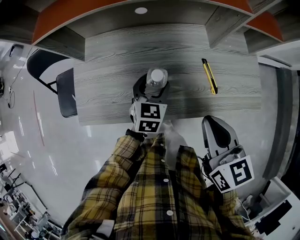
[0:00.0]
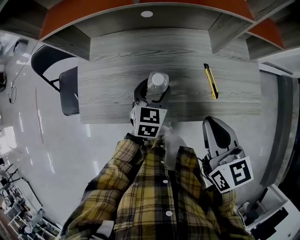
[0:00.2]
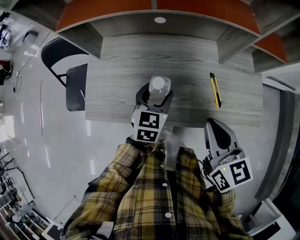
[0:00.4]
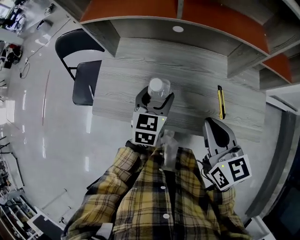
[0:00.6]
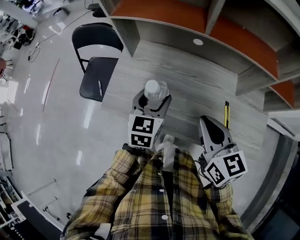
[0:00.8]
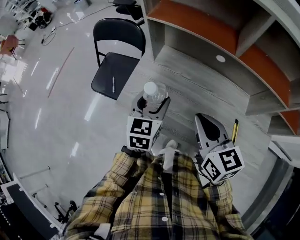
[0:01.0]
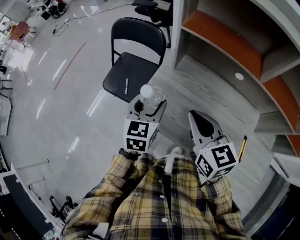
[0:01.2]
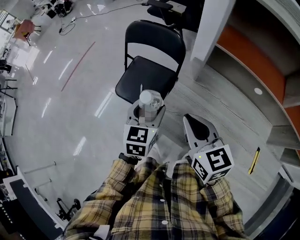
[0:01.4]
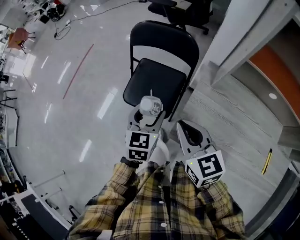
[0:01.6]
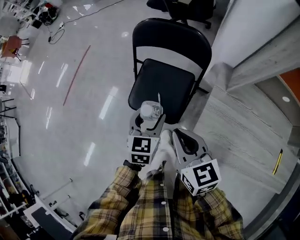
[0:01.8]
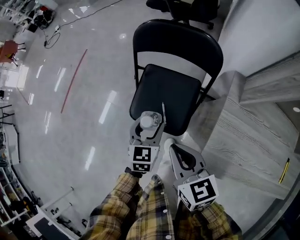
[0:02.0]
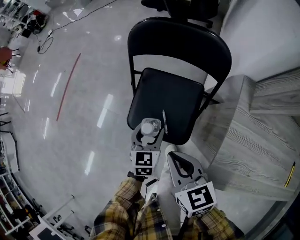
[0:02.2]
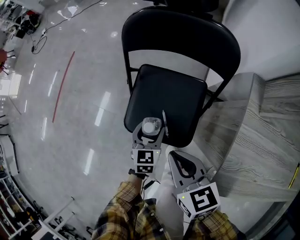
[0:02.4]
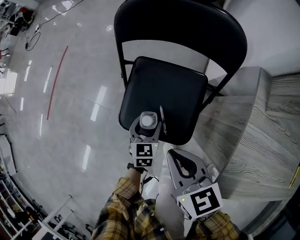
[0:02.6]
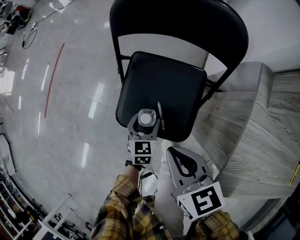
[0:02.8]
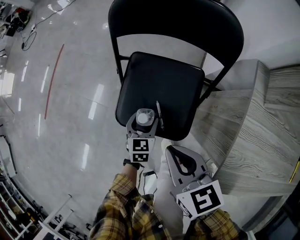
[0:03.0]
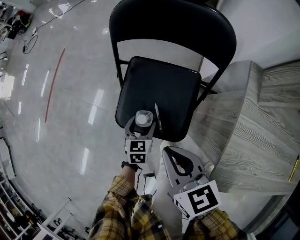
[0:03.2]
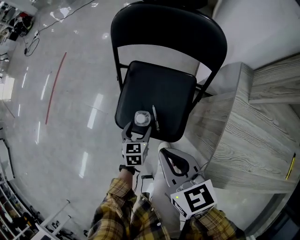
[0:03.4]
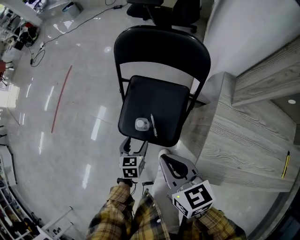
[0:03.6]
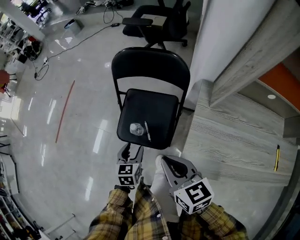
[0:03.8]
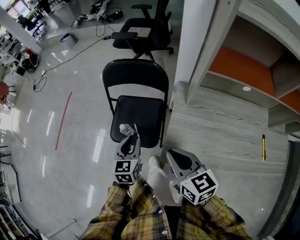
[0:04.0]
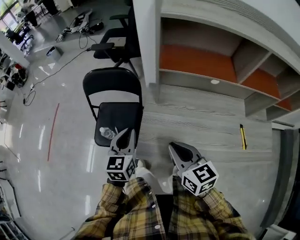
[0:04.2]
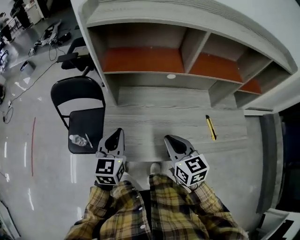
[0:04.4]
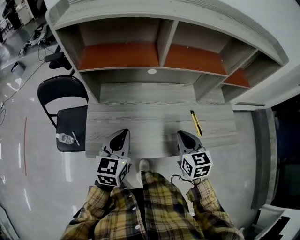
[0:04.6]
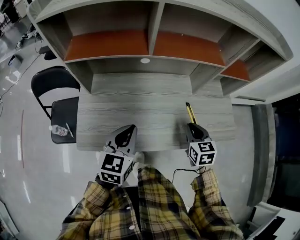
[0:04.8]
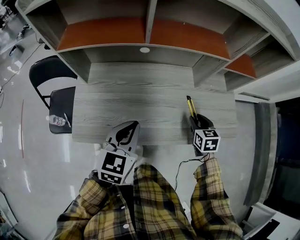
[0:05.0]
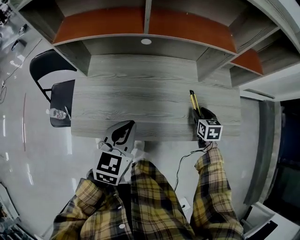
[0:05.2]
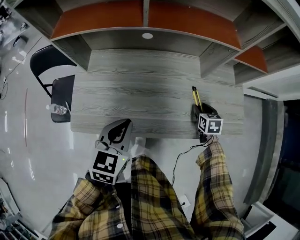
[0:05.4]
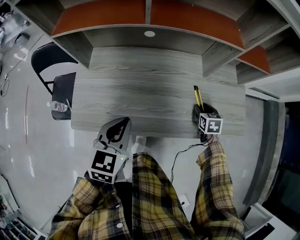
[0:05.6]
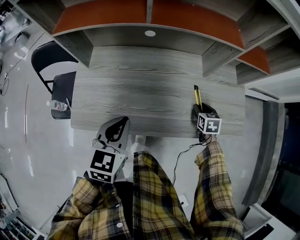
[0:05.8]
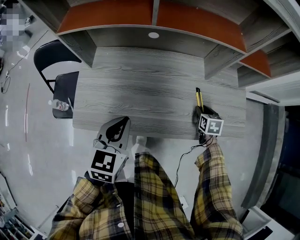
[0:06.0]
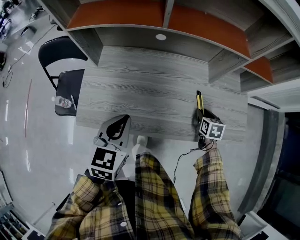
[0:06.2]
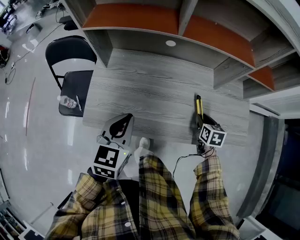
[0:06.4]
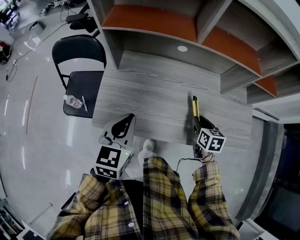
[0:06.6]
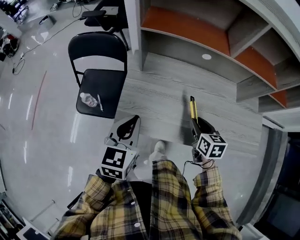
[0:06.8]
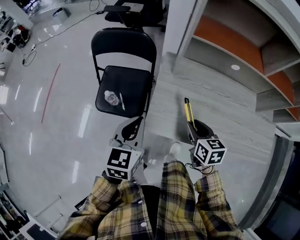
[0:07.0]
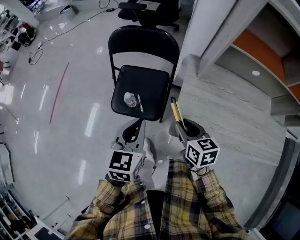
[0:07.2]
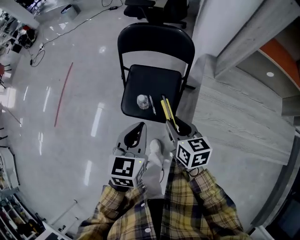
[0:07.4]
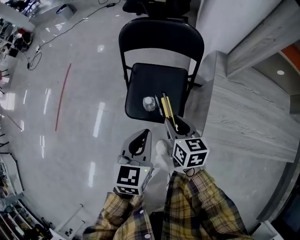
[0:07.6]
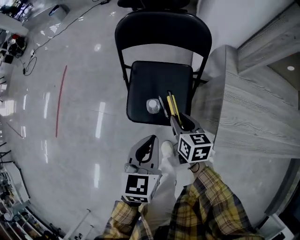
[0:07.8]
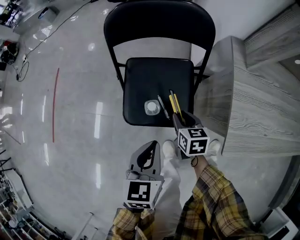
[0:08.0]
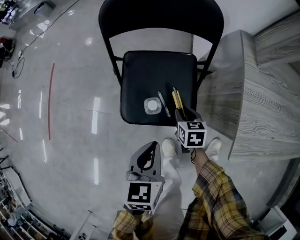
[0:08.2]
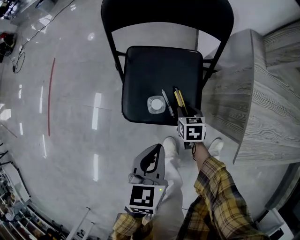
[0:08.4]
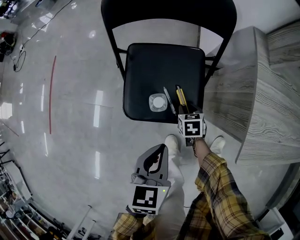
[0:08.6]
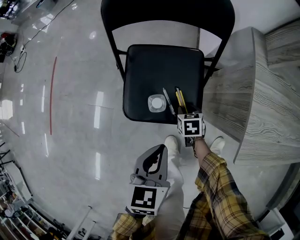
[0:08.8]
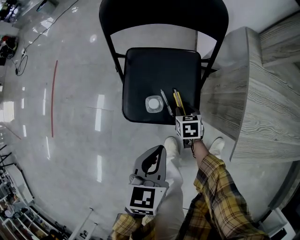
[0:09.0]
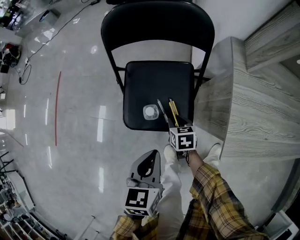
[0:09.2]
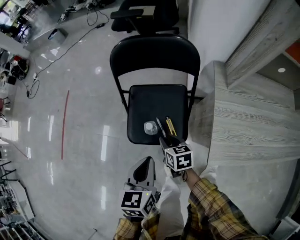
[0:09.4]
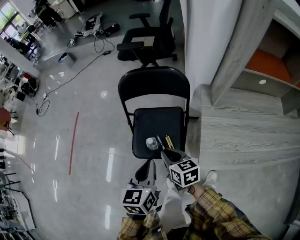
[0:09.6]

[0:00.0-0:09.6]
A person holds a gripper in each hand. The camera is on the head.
0:00.0 to 0:01.6: The pair of grippers is taken some 50 cm. The right gripper turns by roughly 40 degrees. Meanwhile the left gripper changes its angle by some 40 degrees.
0:01.6 to 0:03.2: The right gripper heads downward, to the left and forward, covering about 25 cm, while the left gripper shifts approximately 35 cm downward.
0:03.2 to 0:04.8: The pair of grippers is taken roughly 70 cm. The left gripper turns by roughly 40 degrees, and closes its fingers; the right gripper turns by about 40 degrees.
0:04.8 to 0:06.4: The right gripper travels downward by approximately 10 cm, and opens. The left gripper moves approximately 5 cm.
0:06.4 to 0:08.0: The pair of grippers is taken about 60 cm.
0:08.0 to 0:09.6: The grippers both shift upward by approximately 15 cm.

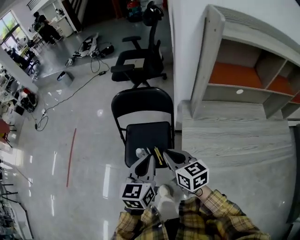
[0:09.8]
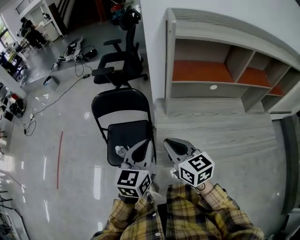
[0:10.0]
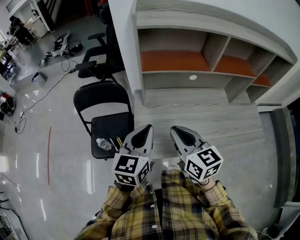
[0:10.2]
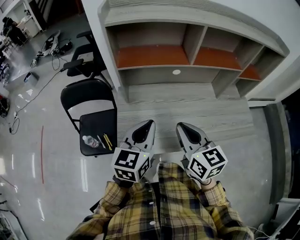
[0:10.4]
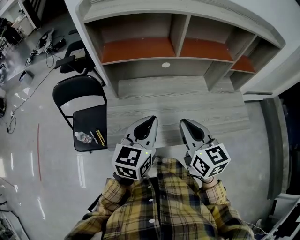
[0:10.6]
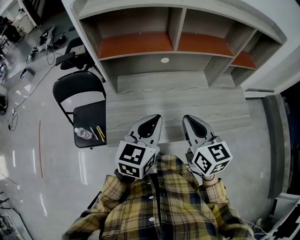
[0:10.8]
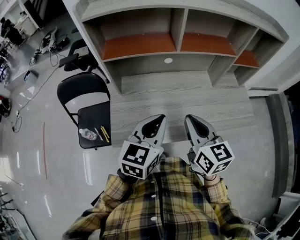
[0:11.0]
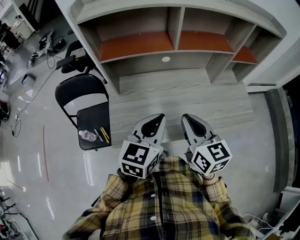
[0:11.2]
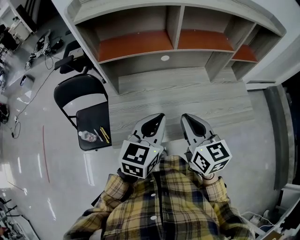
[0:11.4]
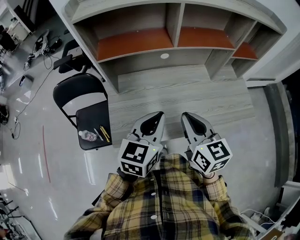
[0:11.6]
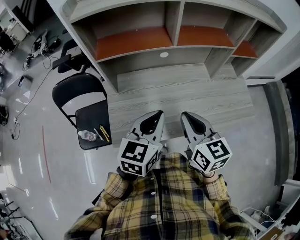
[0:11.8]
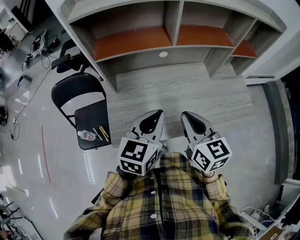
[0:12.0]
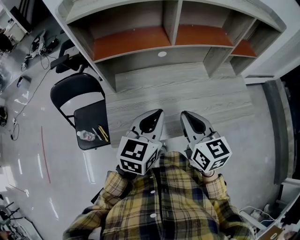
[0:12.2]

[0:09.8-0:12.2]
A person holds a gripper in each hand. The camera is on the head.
0:09.8 to 0:11.0: The pair of grippers is taken about 40 cm. The right gripper turns by approximately 30 degrees. Meanwhile the left gripper swivels roughly 30 degrees.
0:11.0 to 0:12.2: The grippers move only a little.

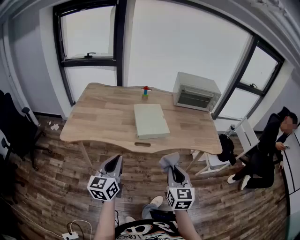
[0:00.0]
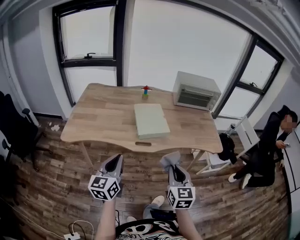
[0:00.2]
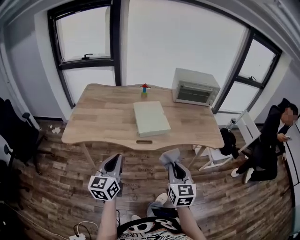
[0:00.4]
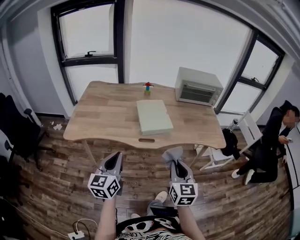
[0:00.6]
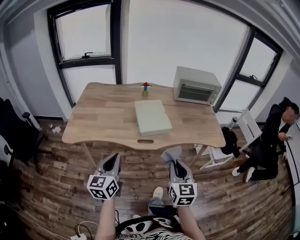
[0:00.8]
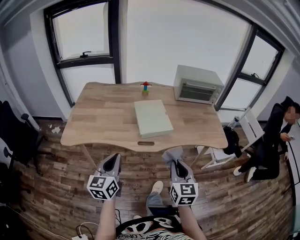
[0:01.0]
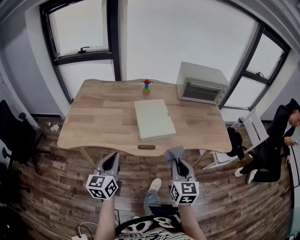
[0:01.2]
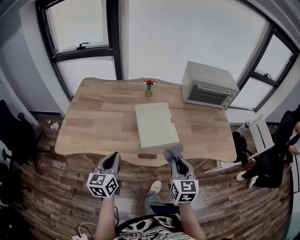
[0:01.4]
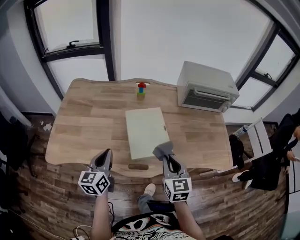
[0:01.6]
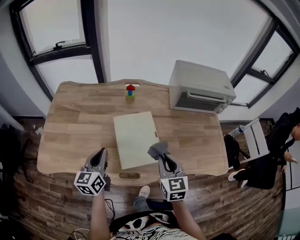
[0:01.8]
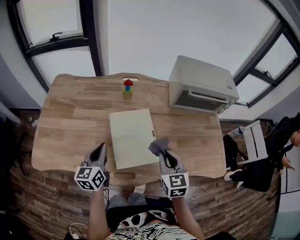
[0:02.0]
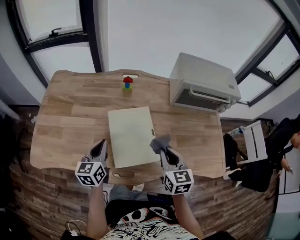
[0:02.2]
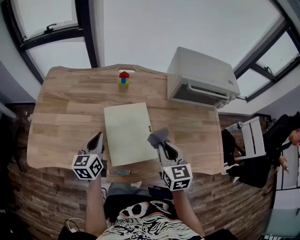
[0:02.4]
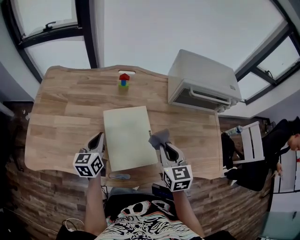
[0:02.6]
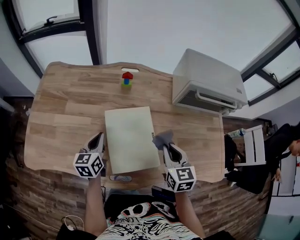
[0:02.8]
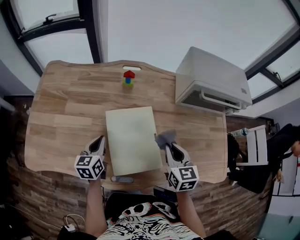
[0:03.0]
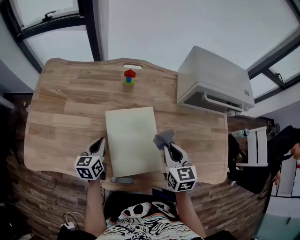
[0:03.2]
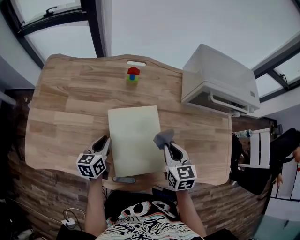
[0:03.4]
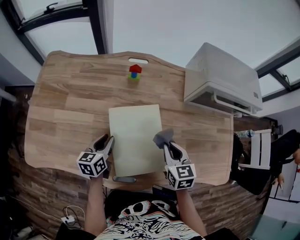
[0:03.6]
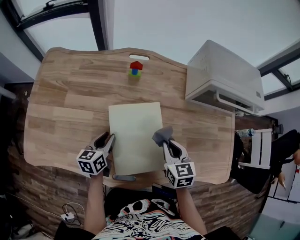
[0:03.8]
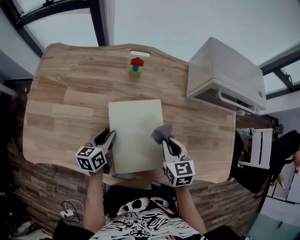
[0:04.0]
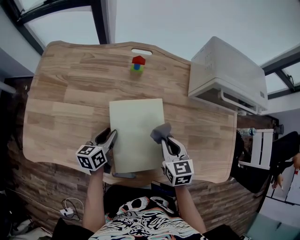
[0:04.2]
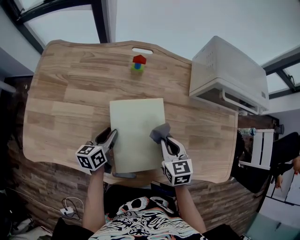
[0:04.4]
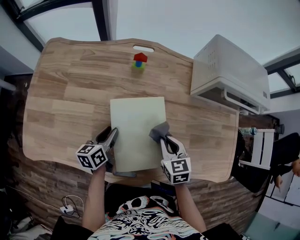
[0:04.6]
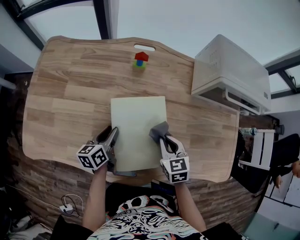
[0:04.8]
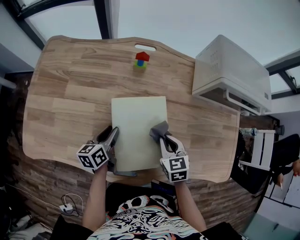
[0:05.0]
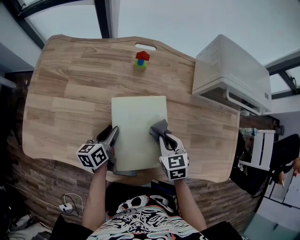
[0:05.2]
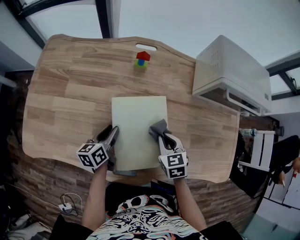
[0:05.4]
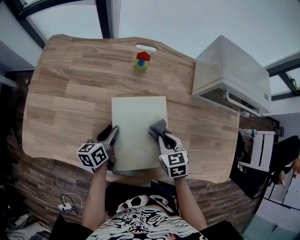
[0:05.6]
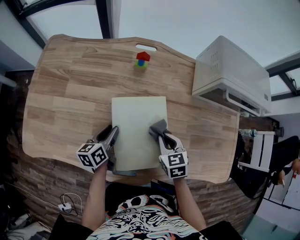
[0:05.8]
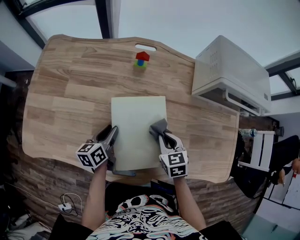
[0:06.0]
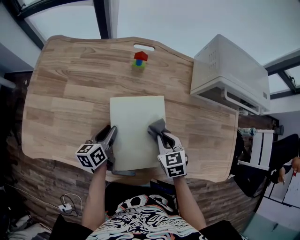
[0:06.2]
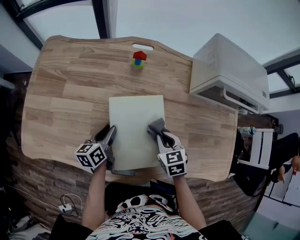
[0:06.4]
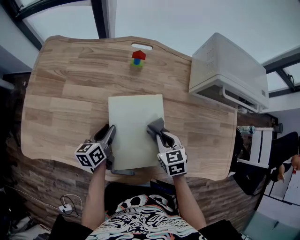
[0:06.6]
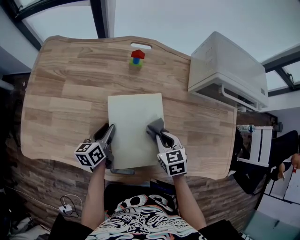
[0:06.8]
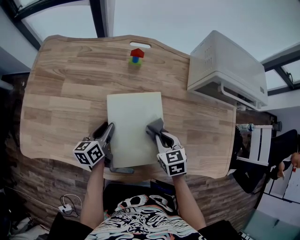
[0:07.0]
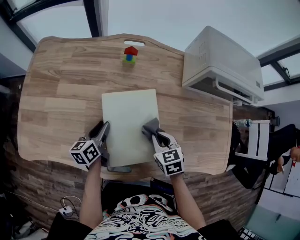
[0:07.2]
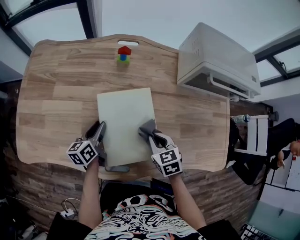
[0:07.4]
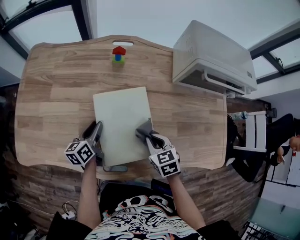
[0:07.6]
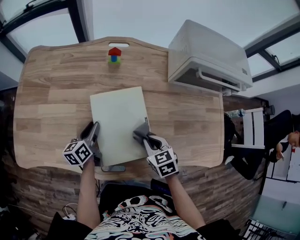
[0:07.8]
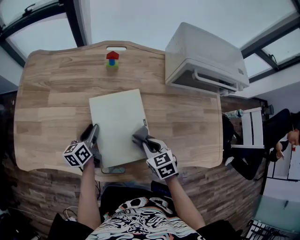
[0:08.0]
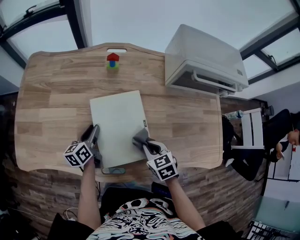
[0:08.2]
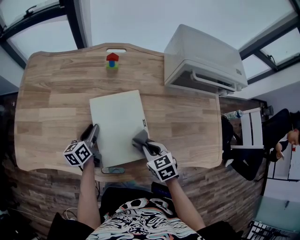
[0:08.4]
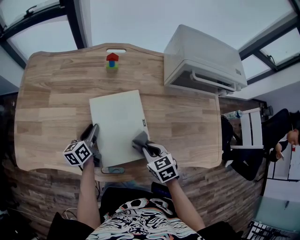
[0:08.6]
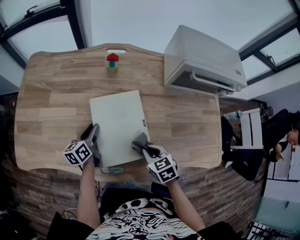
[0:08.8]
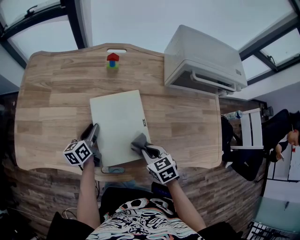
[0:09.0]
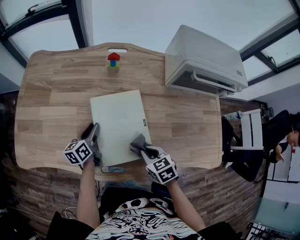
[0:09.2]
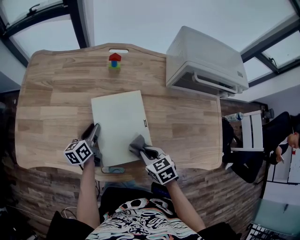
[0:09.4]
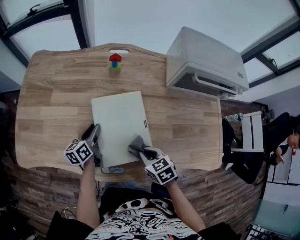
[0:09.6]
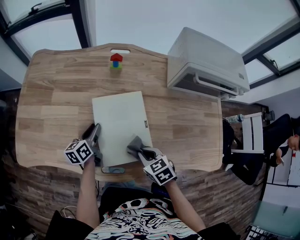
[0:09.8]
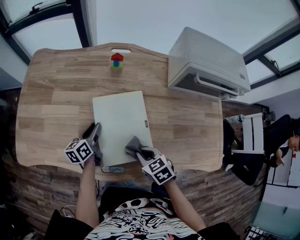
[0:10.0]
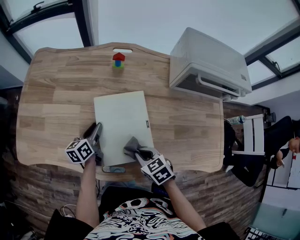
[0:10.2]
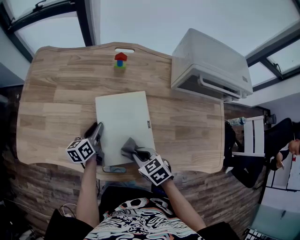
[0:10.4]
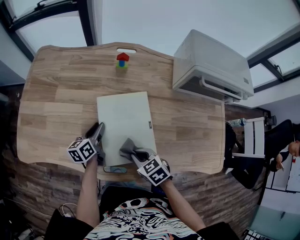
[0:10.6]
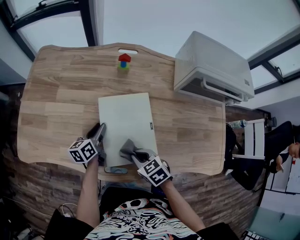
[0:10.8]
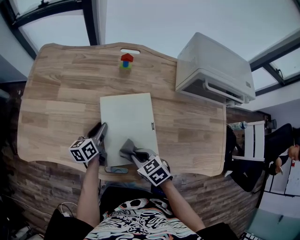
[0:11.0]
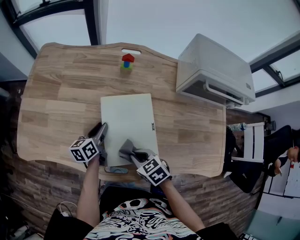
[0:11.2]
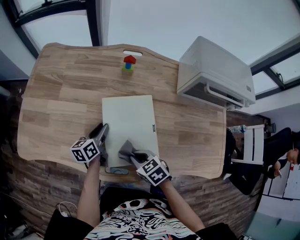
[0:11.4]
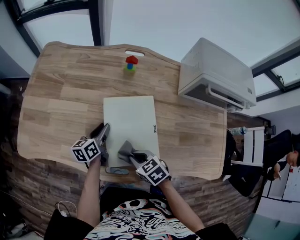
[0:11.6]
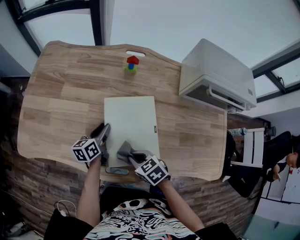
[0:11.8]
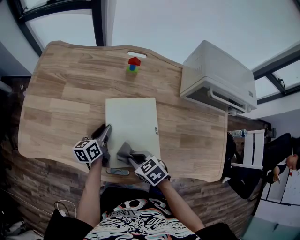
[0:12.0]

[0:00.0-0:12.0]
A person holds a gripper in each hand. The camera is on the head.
0:00.0 to 0:01.6: The grippers both shift forward by some 30 cm.
0:01.6 to 0:03.0: The left gripper goes approximately 20 cm forward and downward, while the right gripper shifts about 20 cm forward and to the right.
0:03.0 to 0:04.4: Both grippers move downward, about 5 cm. The left gripper opens up.
0:04.4 to 0:06.0: The grippers stay close to where they were, moving slightly.
0:06.0 to 0:07.6: The right gripper is displaced backward by approximately 5 cm.
0:07.6 to 0:09.0: The right gripper shifts about 5 cm backward.
0:09.0 to 0:10.4: The right gripper is displaced to the left by some 5 cm.
0:10.4 to 0:12.0: There are only small adjustments of the grippers.
